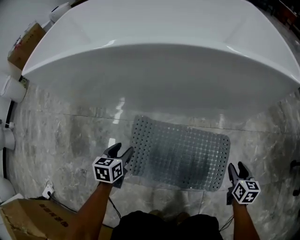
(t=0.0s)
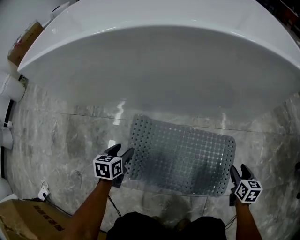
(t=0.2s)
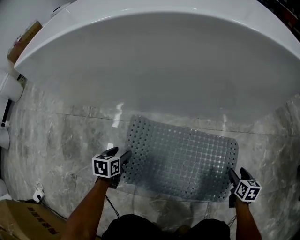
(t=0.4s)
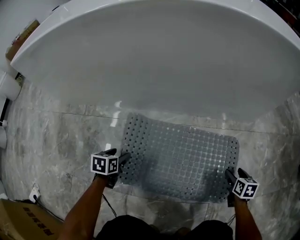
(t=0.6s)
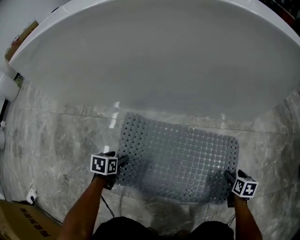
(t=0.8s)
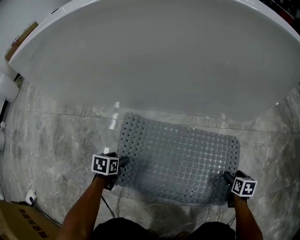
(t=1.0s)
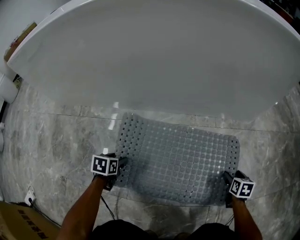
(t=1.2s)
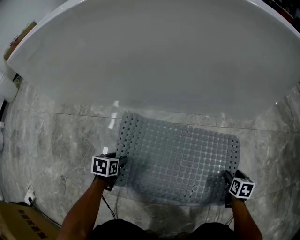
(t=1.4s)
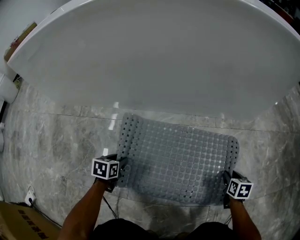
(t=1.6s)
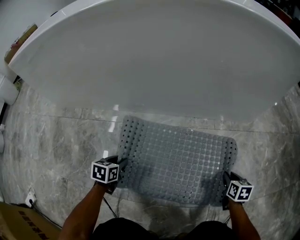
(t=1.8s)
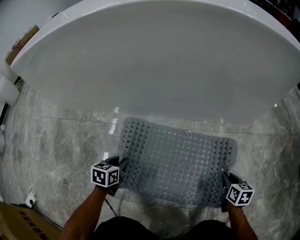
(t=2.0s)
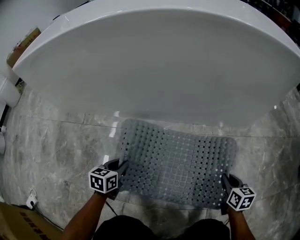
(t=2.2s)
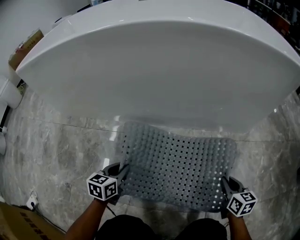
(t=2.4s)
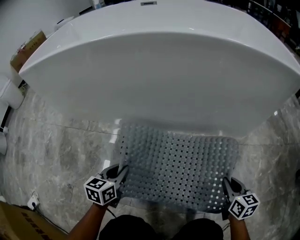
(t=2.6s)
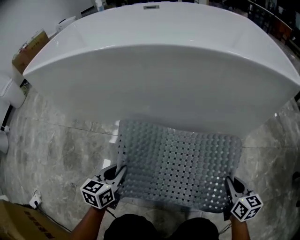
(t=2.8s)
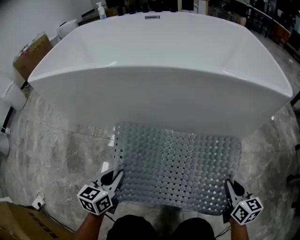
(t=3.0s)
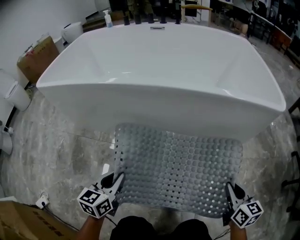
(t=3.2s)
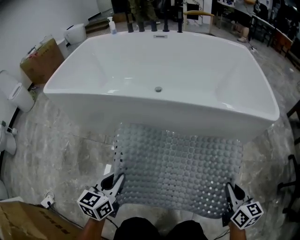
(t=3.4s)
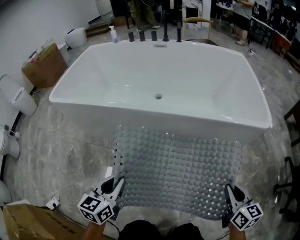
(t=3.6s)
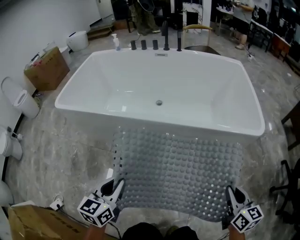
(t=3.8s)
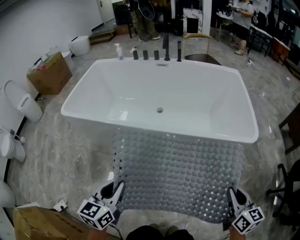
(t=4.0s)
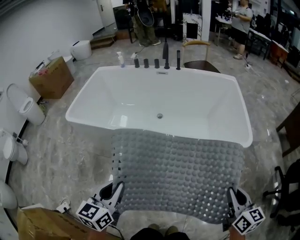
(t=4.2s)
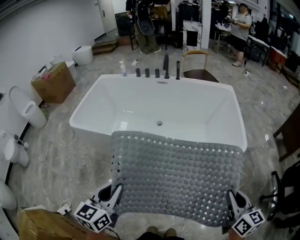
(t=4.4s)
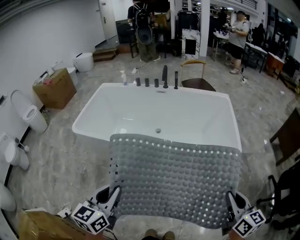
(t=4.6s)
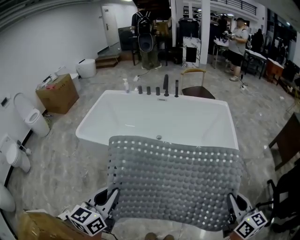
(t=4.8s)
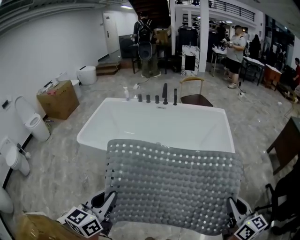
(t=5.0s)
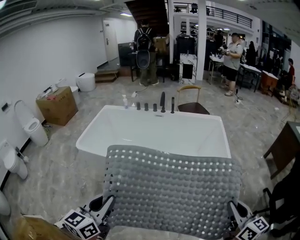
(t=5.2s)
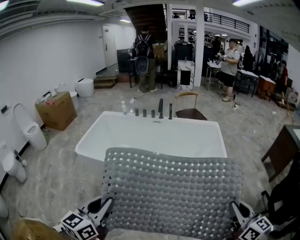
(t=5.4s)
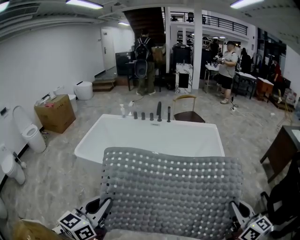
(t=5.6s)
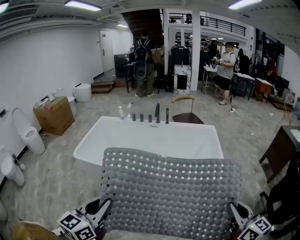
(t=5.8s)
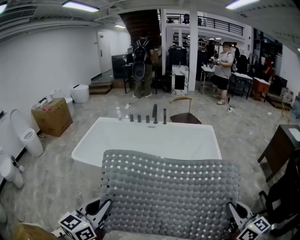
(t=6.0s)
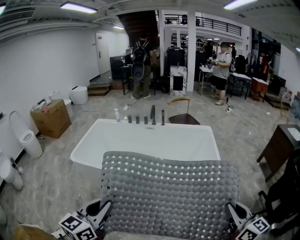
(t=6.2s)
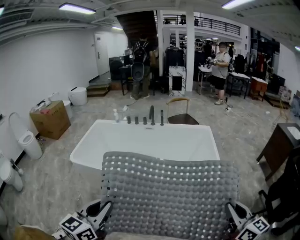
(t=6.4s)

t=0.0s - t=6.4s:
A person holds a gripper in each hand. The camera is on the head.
t=0.0s - t=1.6s: The grippers both shift downward by roughly 25 cm. The right gripper opens and closes again.
t=1.6s - t=3.2s: The grippers both shift upward by about 40 cm. The left gripper angles its fingers upward, by about 30 degrees, and closes up, while the right gripper angles its fingers upward, by some 30 degrees.
t=3.2s - t=4.8s: The grippers both shift upward by about 60 cm.
t=4.8s - t=6.4s: The right gripper moves upward and backward, approximately 10 cm. Meanwhile the left gripper shifts approximately 10 cm upward.

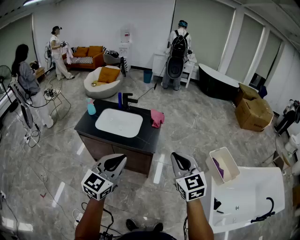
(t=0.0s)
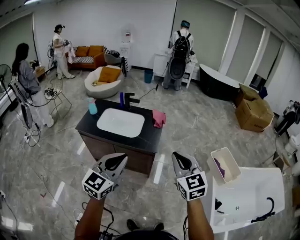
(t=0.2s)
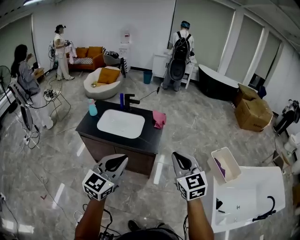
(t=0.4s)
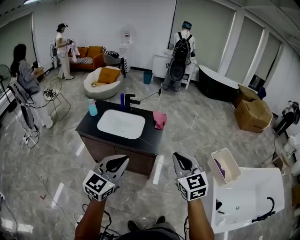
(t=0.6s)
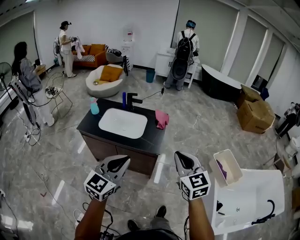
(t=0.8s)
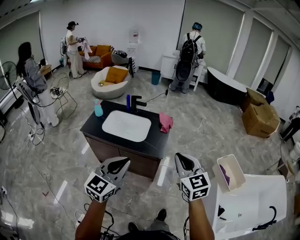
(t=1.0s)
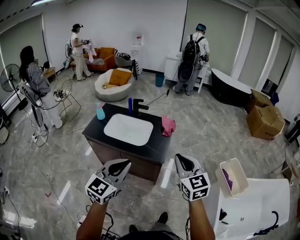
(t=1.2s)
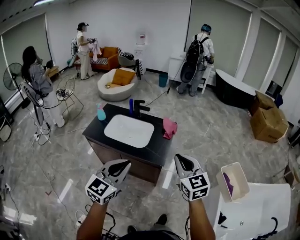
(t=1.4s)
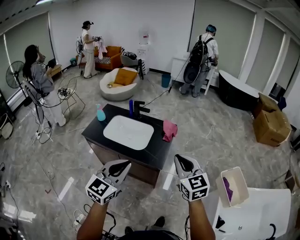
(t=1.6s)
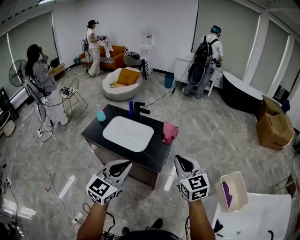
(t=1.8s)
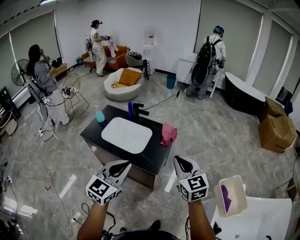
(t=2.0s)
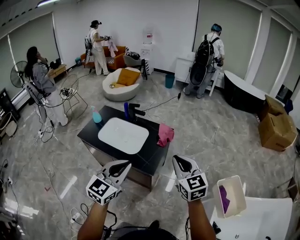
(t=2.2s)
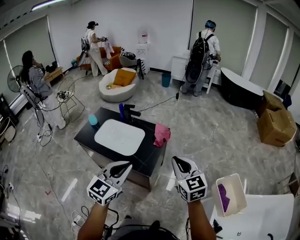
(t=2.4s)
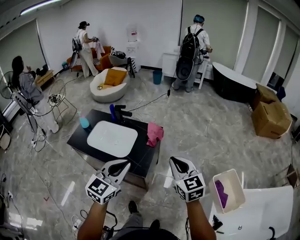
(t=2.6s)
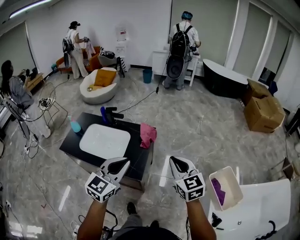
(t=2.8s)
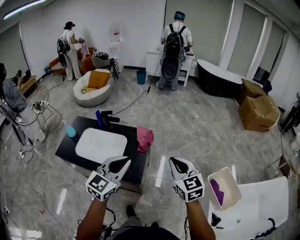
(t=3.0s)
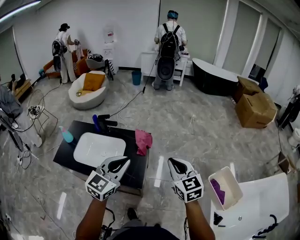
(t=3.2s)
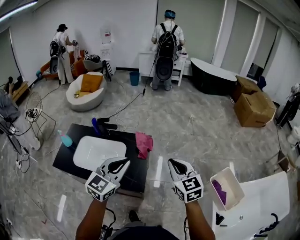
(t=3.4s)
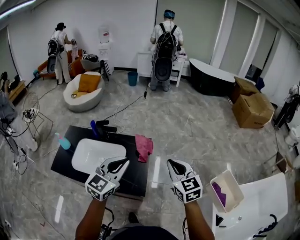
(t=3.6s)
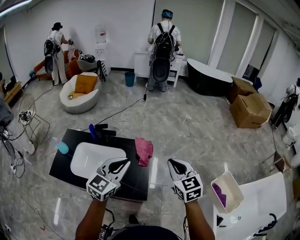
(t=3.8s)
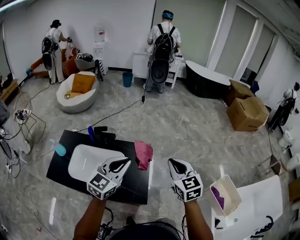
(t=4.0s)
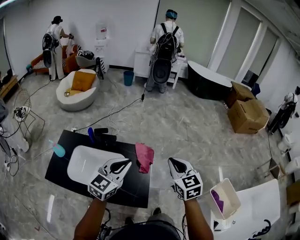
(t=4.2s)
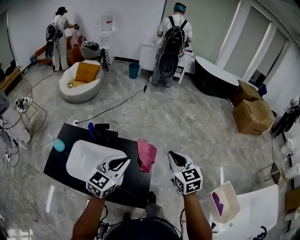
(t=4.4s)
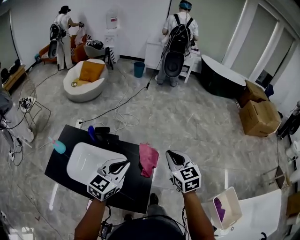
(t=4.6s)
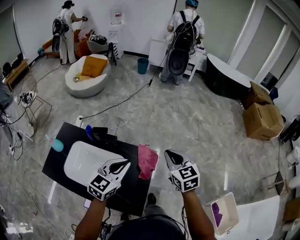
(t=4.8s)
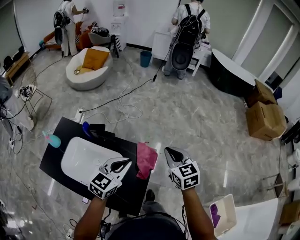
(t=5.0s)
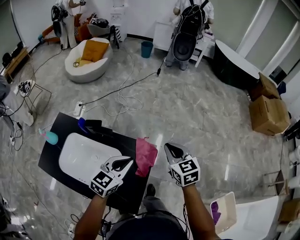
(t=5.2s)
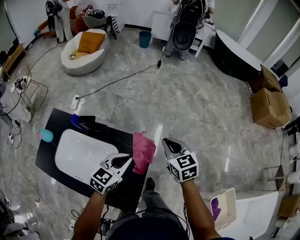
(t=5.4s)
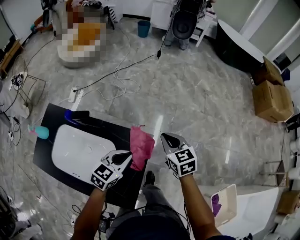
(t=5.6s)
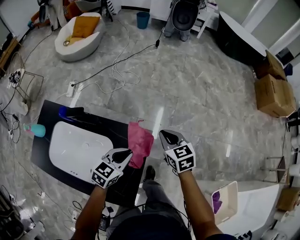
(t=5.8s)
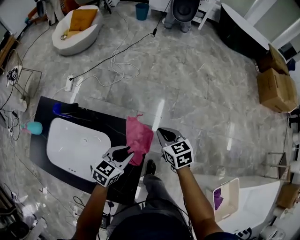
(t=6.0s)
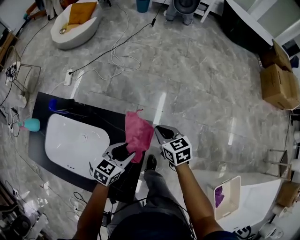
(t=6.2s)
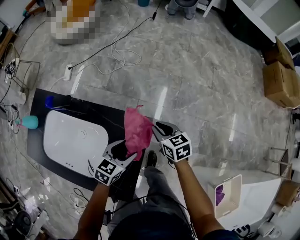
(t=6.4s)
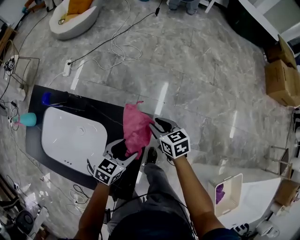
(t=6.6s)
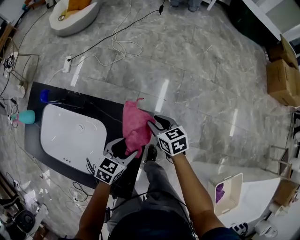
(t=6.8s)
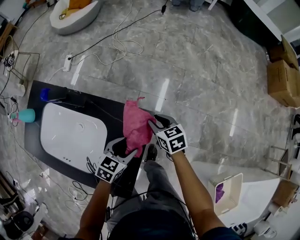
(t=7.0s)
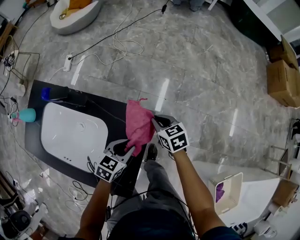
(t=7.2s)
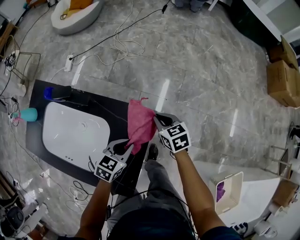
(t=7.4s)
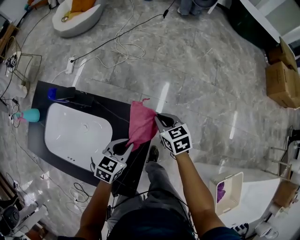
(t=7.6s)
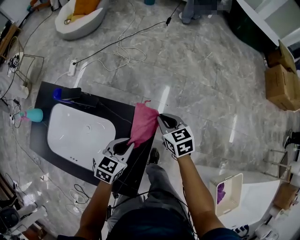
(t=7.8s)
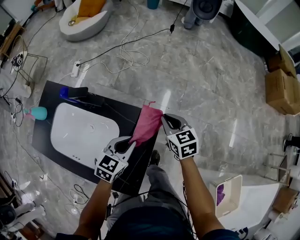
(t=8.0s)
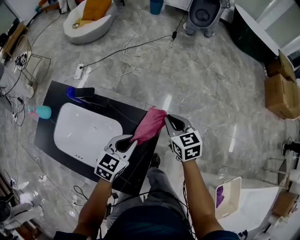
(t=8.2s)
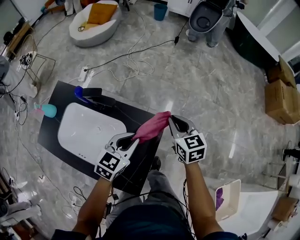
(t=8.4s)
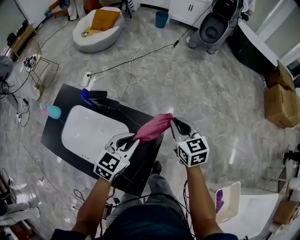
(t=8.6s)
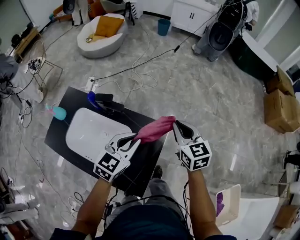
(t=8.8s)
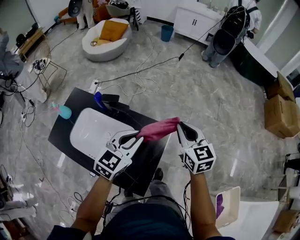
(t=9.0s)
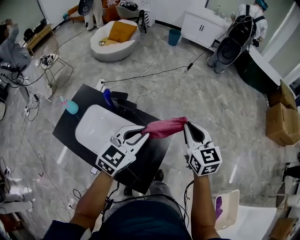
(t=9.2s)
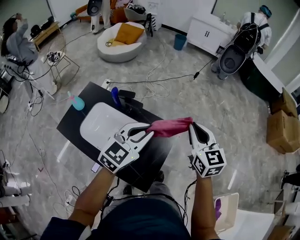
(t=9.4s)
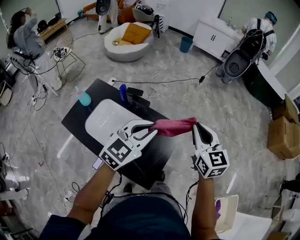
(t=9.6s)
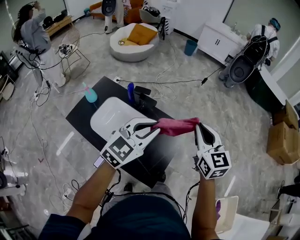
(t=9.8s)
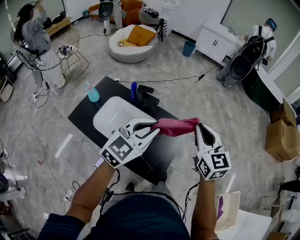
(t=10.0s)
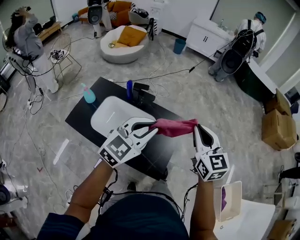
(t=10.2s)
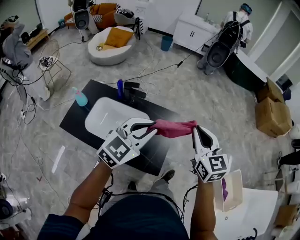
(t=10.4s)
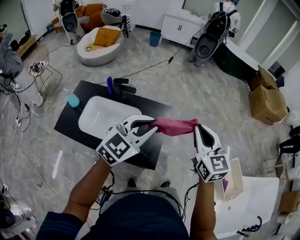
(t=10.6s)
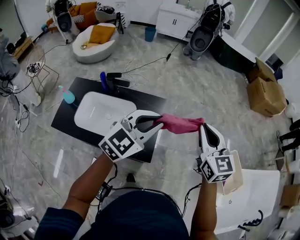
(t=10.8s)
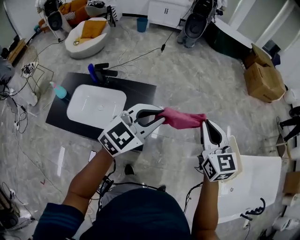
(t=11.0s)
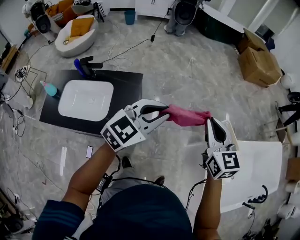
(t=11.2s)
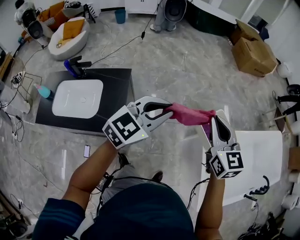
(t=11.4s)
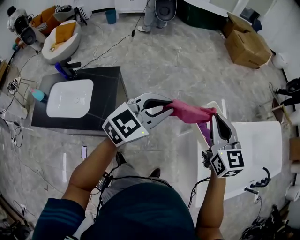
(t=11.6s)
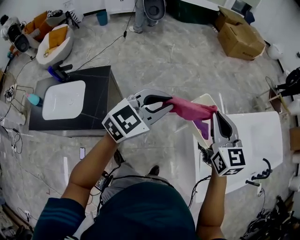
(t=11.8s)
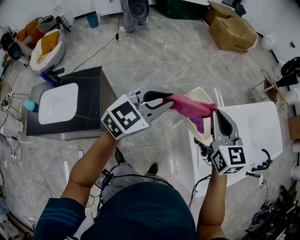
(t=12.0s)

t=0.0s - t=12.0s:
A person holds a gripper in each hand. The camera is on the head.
t=0.0s - t=1.6s: Both grippers move forward, roughly 15 cm.
t=1.6s - t=3.0s: The grippers both shift forward and to the right by some 25 cm.
t=3.0s - t=4.4s: Both grippers move forward and to the left, approximately 25 cm.
t=4.4s - t=6.0s: The grippers both shift downward and forward by approximately 35 cm. The right gripper swivels approximately 30 degrees. Meanwhile the left gripper rotates about 30 degrees.
t=6.0s - t=7.6s: The two grippers go some 5 cm downward. The left gripper opens, then closes once more. Meanwhile the right gripper opens, then closes once more.
t=7.6s - t=9.0s: Both grippers move upward, some 30 cm. The left gripper changes its angle by about 30 degrees, while the right gripper swivels some 30 degrees.
t=9.0s - t=10.4s: Both grippers travel together backward and upward, about 25 cm.
t=10.4s - t=12.0s: The two grippers travel together, about 60 cm. The left gripper swivels roughly 40 degrees; the right gripper turns by roughly 30 degrees.

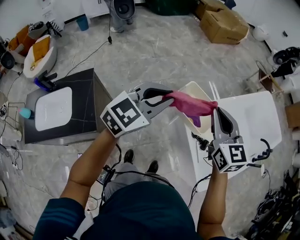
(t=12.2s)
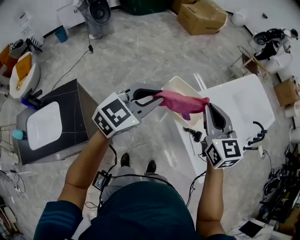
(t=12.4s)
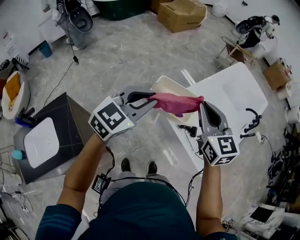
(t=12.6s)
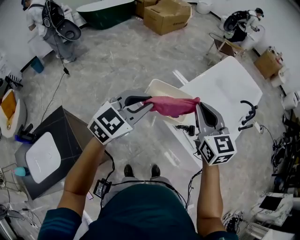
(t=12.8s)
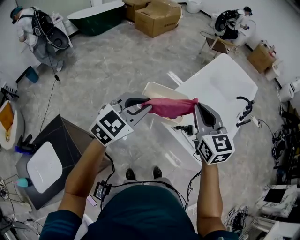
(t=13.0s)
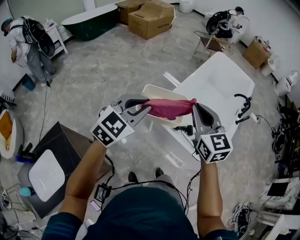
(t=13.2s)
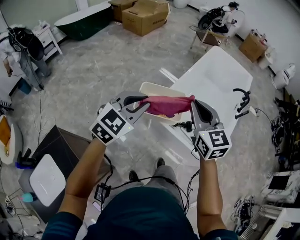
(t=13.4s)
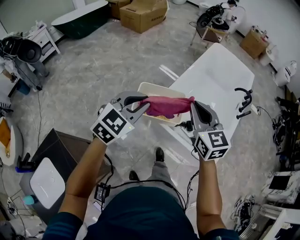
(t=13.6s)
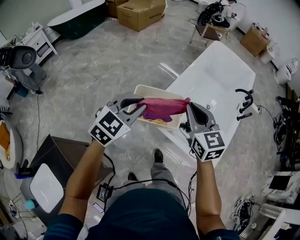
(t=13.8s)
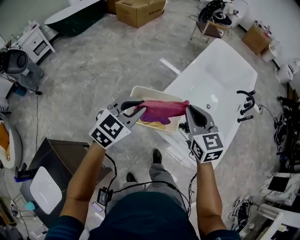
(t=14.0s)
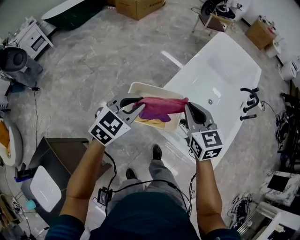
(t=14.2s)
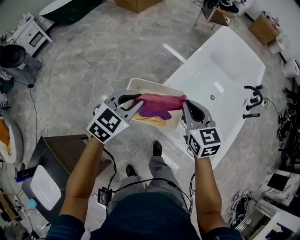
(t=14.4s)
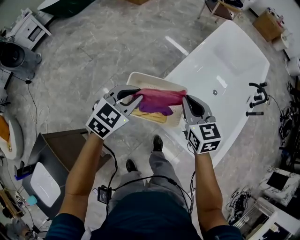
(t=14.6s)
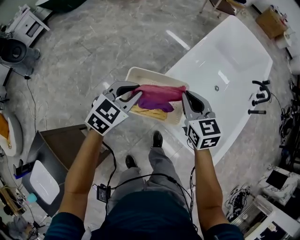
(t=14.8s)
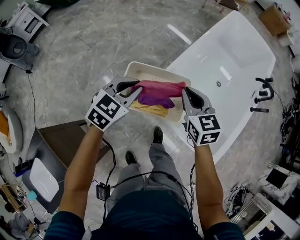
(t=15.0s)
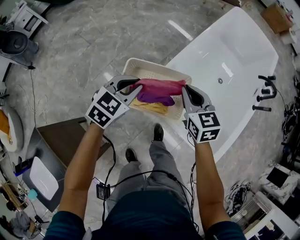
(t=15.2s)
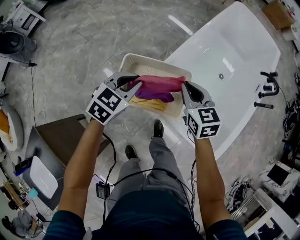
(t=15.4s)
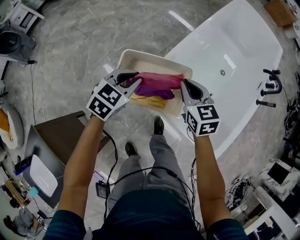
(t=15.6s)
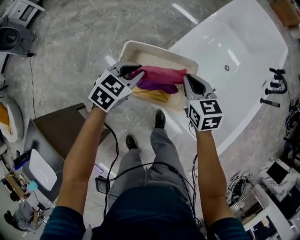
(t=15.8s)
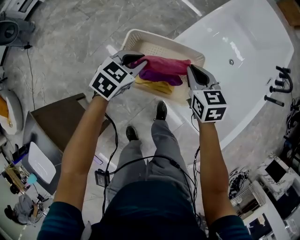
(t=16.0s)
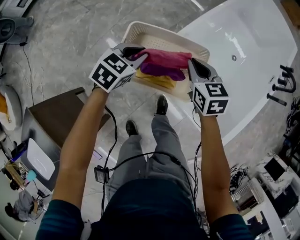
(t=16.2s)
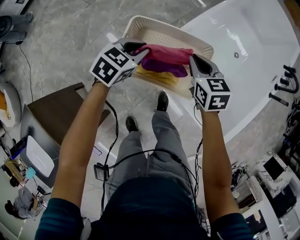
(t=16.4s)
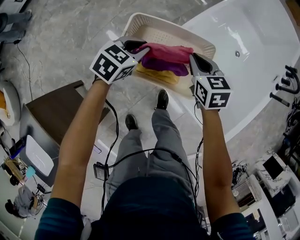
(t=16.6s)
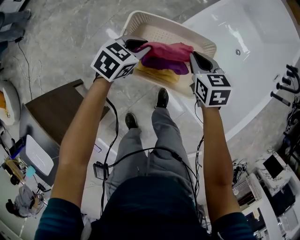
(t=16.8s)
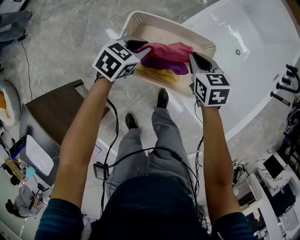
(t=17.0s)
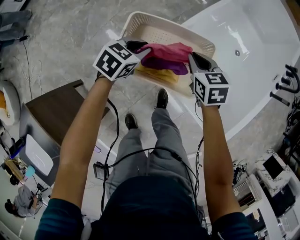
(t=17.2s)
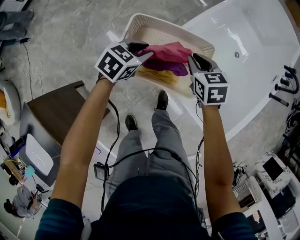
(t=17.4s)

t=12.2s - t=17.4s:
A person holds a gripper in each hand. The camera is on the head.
t=12.2s - t=14.0s: The left gripper moves forward, downward and to the right, some 25 cm, and turns by approximately 30 degrees. The right gripper moves forward, to the right and downward, about 20 cm, and changes its angle by approximately 30 degrees.
t=14.0s - t=15.6s: The two grippers go roughly 30 cm downward and forward.
t=15.6s - t=17.4s: Both grippers move downward, some 10 cm.
